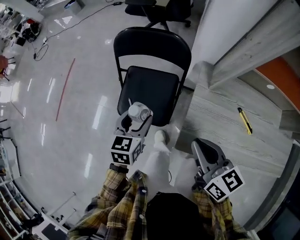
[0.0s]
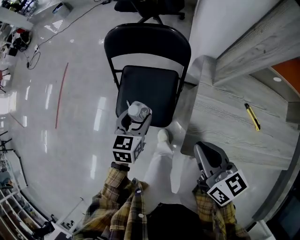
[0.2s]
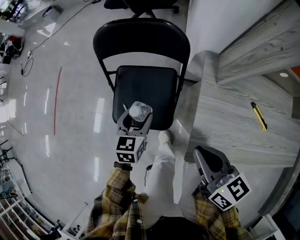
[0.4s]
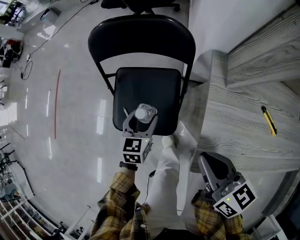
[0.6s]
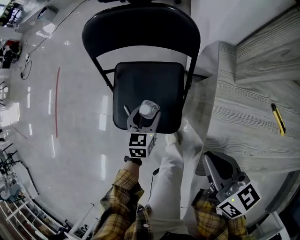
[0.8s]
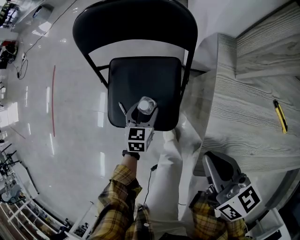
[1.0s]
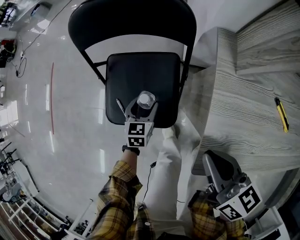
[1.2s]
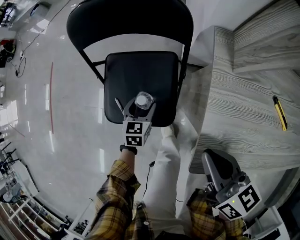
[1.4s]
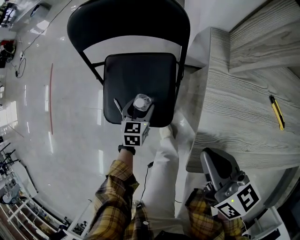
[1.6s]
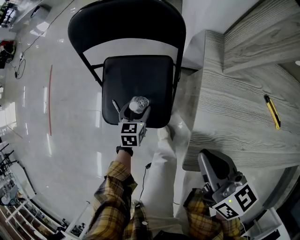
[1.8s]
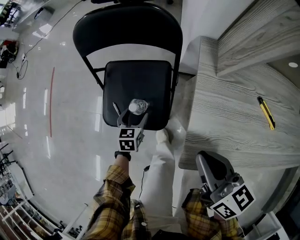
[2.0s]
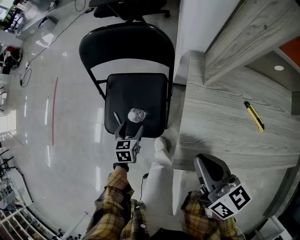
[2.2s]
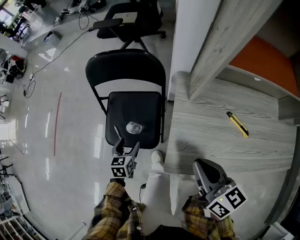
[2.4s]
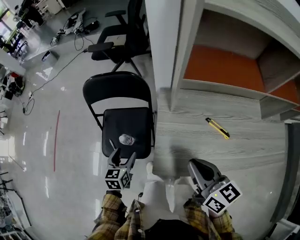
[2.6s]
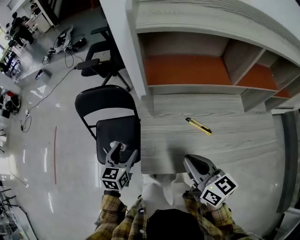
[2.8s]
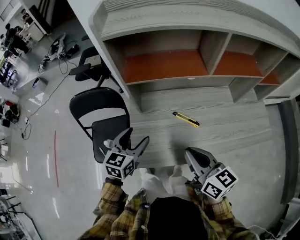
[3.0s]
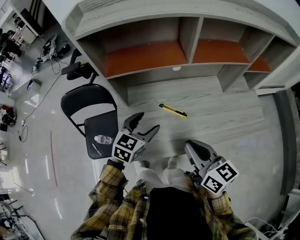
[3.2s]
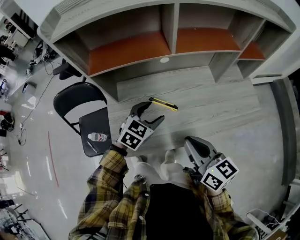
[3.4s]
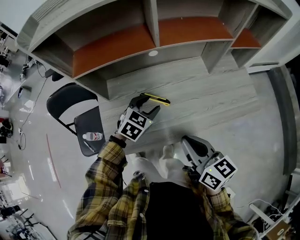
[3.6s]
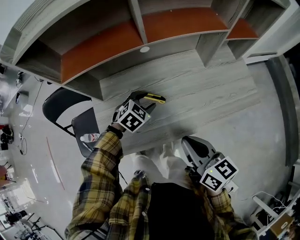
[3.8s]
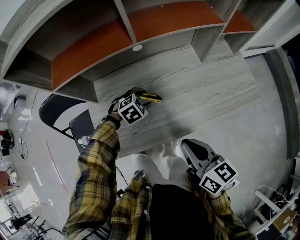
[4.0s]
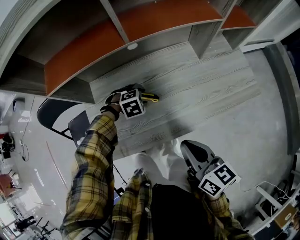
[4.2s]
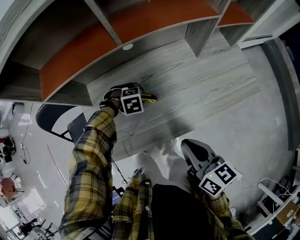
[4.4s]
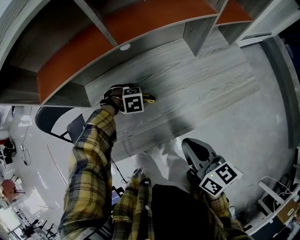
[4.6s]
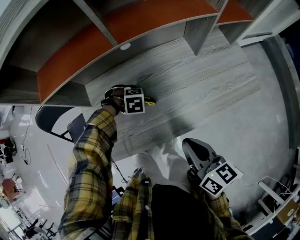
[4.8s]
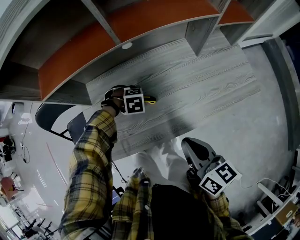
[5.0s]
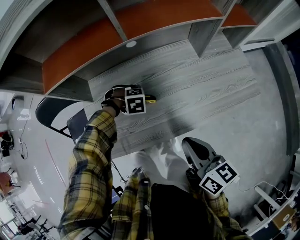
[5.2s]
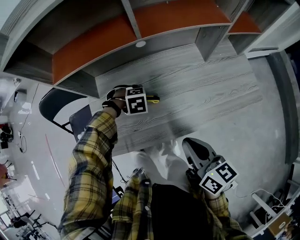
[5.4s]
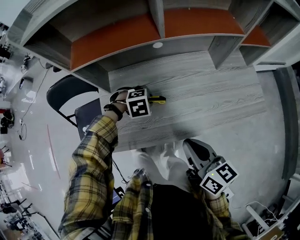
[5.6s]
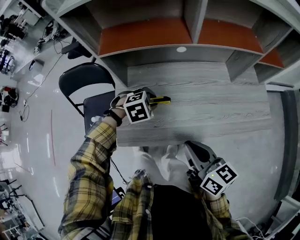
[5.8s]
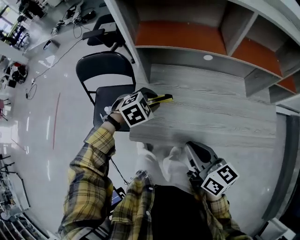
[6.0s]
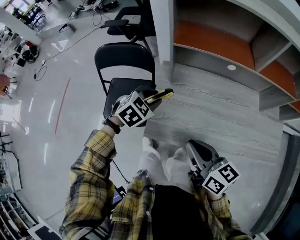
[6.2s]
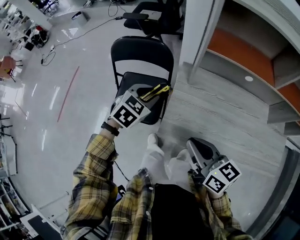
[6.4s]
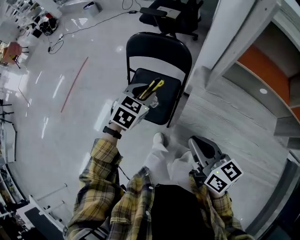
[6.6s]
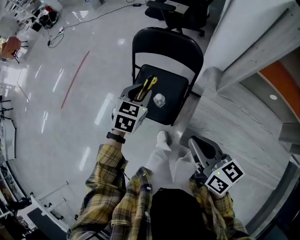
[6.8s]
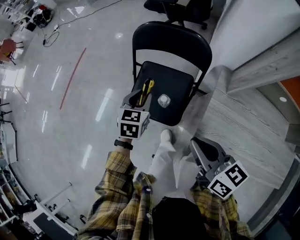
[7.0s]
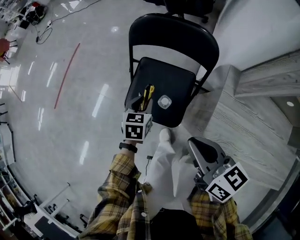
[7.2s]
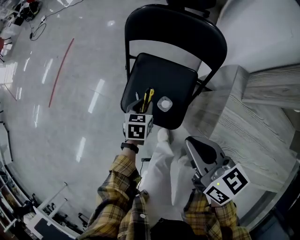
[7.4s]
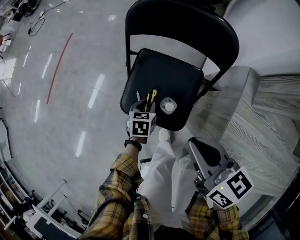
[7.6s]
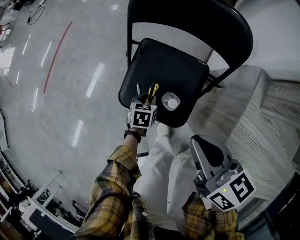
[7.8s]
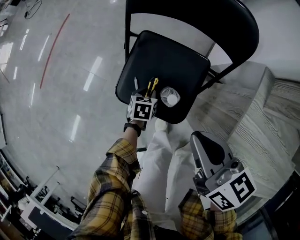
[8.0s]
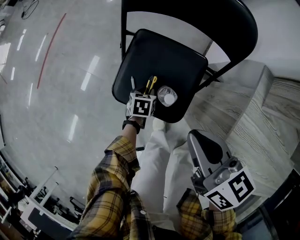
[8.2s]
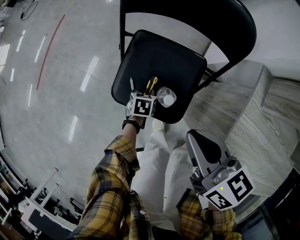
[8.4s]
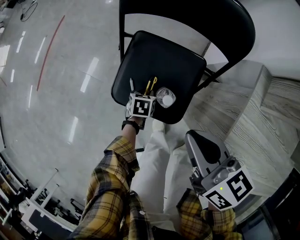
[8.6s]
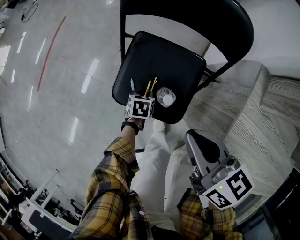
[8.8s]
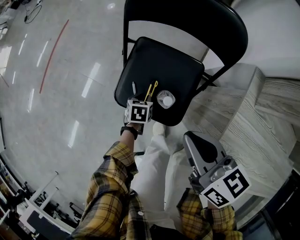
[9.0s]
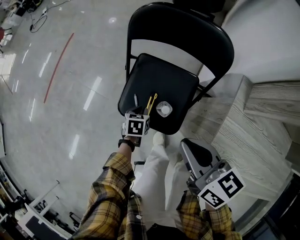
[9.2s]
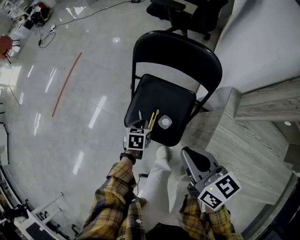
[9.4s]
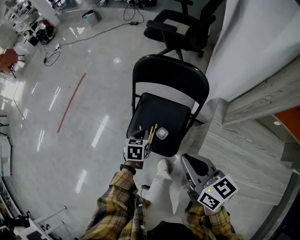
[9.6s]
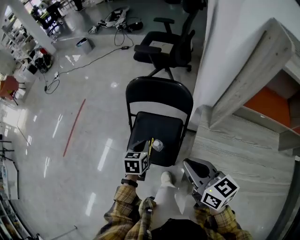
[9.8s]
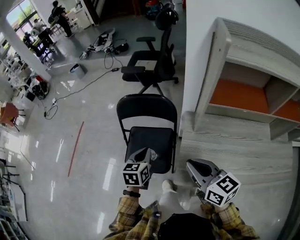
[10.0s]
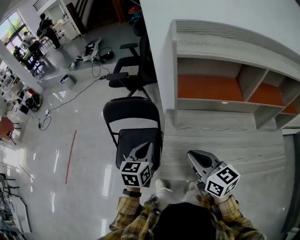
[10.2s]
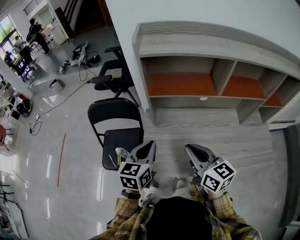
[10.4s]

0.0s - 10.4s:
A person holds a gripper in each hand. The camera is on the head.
0.0s - 1.4s: The right gripper is displaced downward by roughly 15 cm, while the left gripper travels downward by some 30 cm.
1.4s - 3.0s: The left gripper heads upward and to the right, covering roughly 50 cm, and rotates roughly 30 degrees. The right gripper goes some 35 cm to the right, upward and backward, and rotates roughly 20 degrees.
3.0s - 4.4s: The left gripper ends up roughly 35 cm from where it was, and tilts its fingers some 60 degrees downward. The right gripper moves about 20 cm, and swivels approximately 20 degrees.
4.4s - 6.0s: The left gripper moves about 25 cm, and turns by about 50 degrees, while the right gripper shifts by roughly 15 cm, and changes its angle by about 30 degrees.
6.0s - 7.4s: Both grippers are carried approximately 40 cm. The left gripper rolls counterclockwise, seen from behind, by approximately 70 degrees. Meanwhile the right gripper turns by about 30 degrees.
7.4s - 9.0s: The right gripper heads downward, covering approximately 5 cm; the left gripper heads downward, covering approximately 15 cm.
9.0s - 10.4s: The right gripper ends up some 50 cm from where it was, and turns by roughly 40 degrees, while the left gripper heads upward, covering roughly 60 cm, and points its fingers approximately 50 degrees further upward.

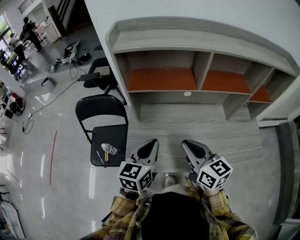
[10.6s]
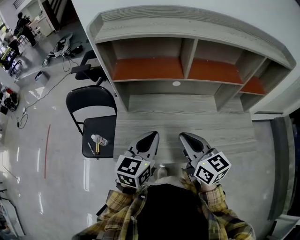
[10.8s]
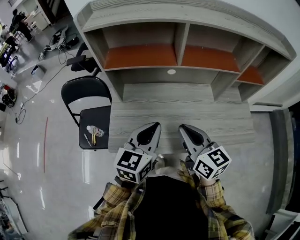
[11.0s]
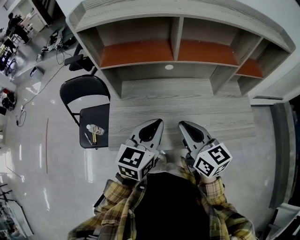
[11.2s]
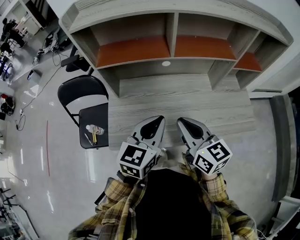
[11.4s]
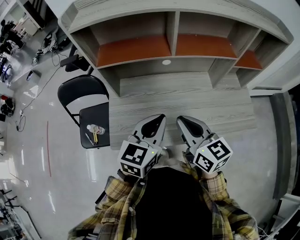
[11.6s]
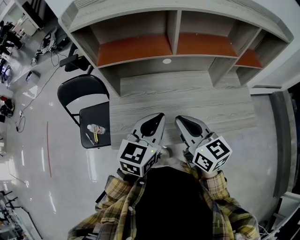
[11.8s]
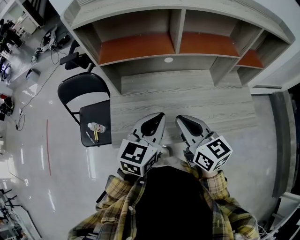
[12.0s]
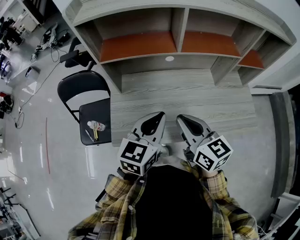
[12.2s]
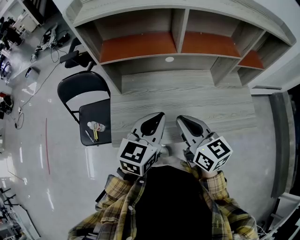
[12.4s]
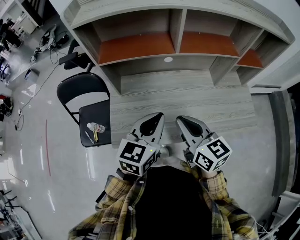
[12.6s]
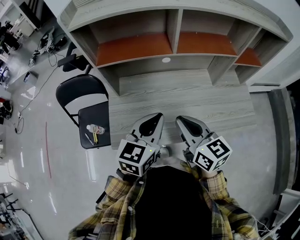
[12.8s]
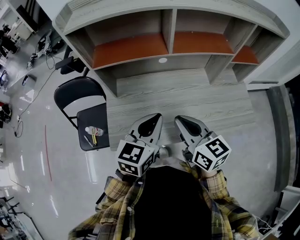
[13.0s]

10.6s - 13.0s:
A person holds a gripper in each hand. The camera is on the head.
10.6s - 11.8s: The right gripper goes about 5 cm to the right. The left gripper is displaced to the right by approximately 10 cm.
11.8s - 13.0s: Neither gripper changes place.

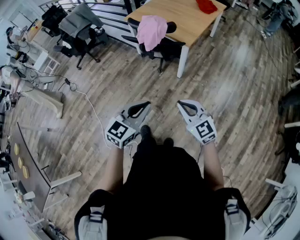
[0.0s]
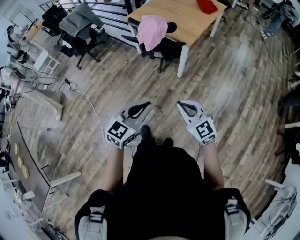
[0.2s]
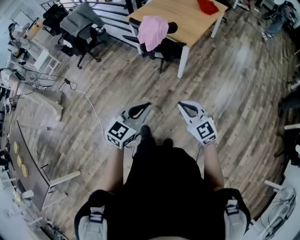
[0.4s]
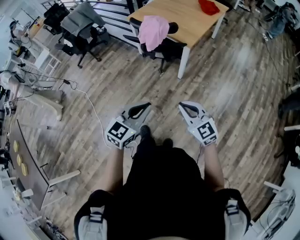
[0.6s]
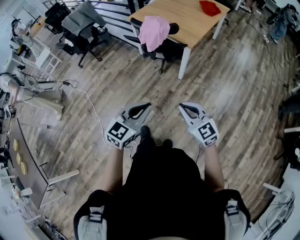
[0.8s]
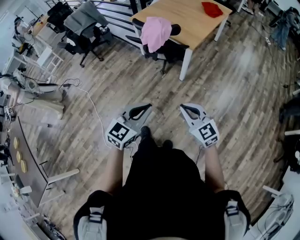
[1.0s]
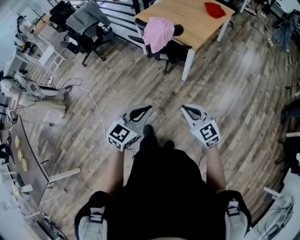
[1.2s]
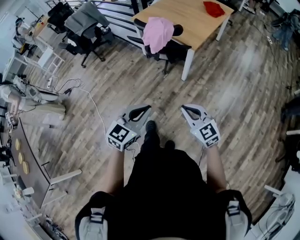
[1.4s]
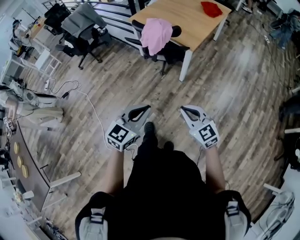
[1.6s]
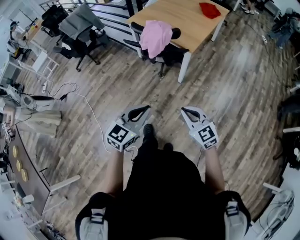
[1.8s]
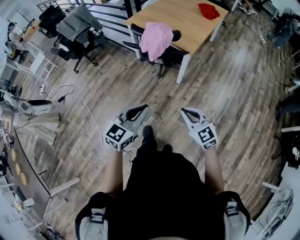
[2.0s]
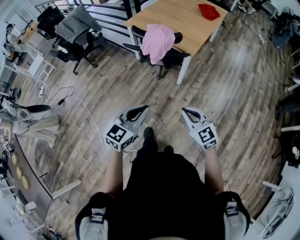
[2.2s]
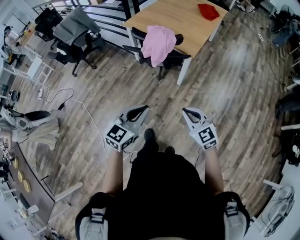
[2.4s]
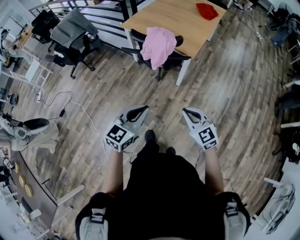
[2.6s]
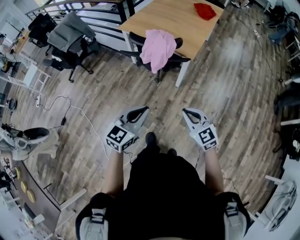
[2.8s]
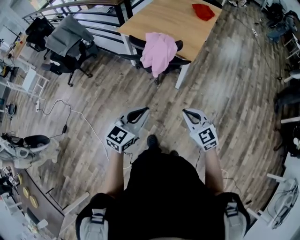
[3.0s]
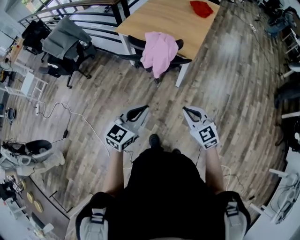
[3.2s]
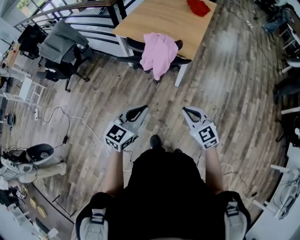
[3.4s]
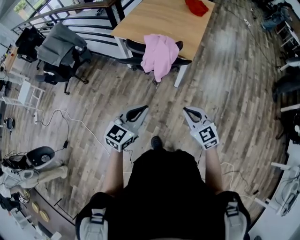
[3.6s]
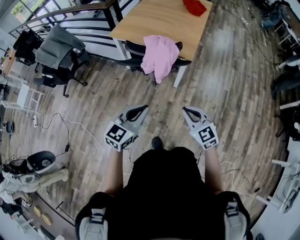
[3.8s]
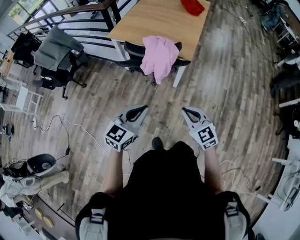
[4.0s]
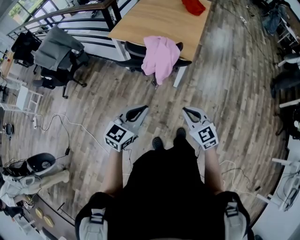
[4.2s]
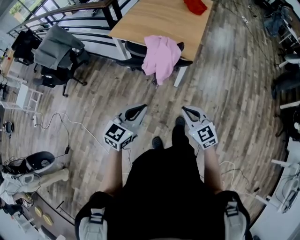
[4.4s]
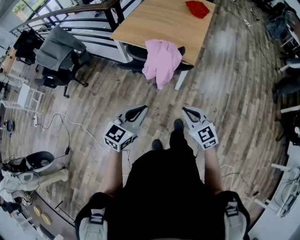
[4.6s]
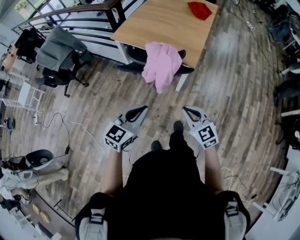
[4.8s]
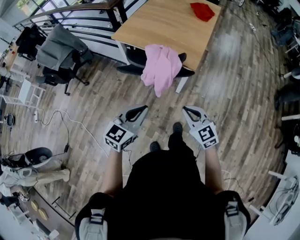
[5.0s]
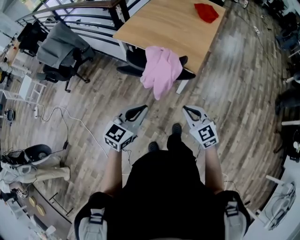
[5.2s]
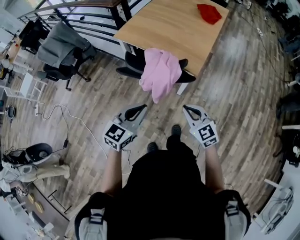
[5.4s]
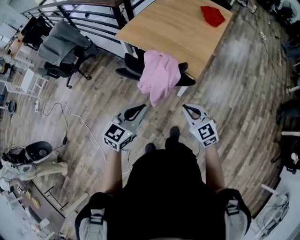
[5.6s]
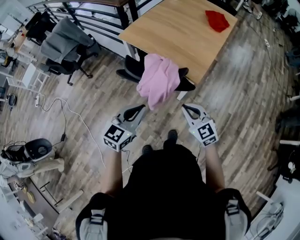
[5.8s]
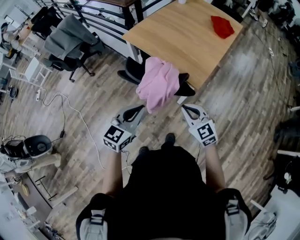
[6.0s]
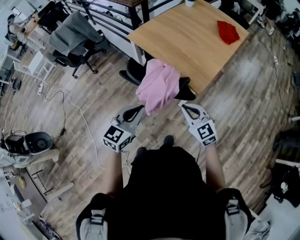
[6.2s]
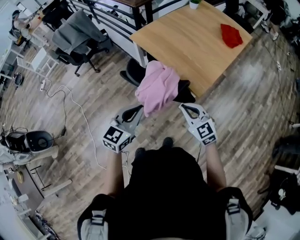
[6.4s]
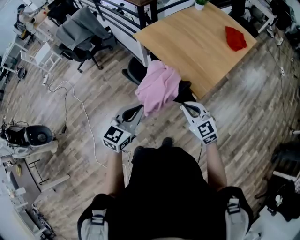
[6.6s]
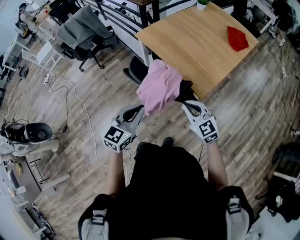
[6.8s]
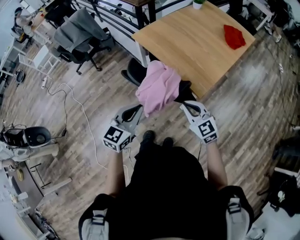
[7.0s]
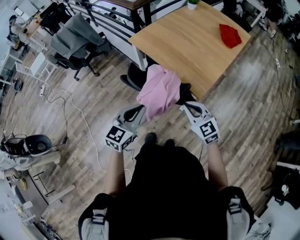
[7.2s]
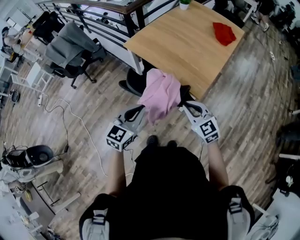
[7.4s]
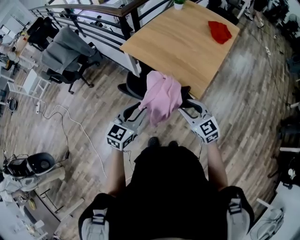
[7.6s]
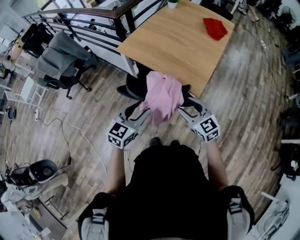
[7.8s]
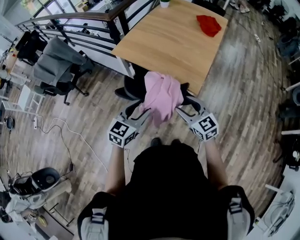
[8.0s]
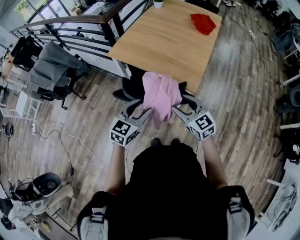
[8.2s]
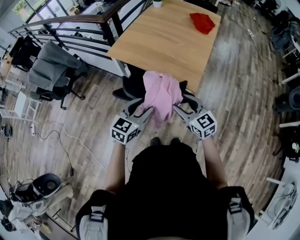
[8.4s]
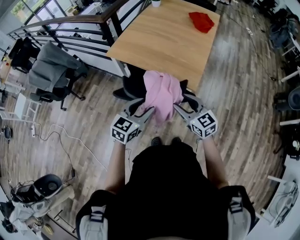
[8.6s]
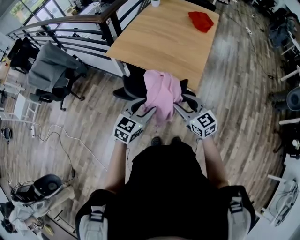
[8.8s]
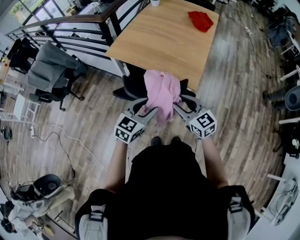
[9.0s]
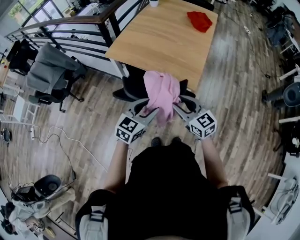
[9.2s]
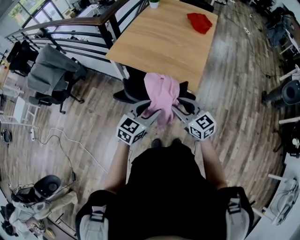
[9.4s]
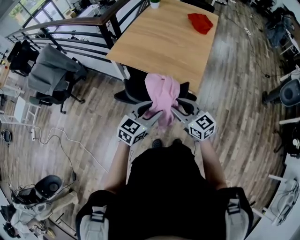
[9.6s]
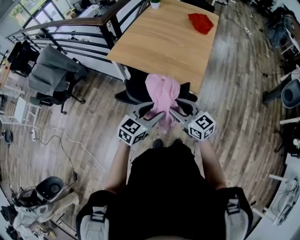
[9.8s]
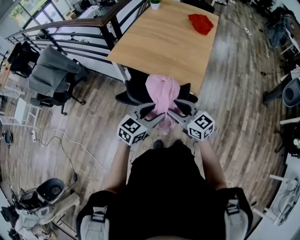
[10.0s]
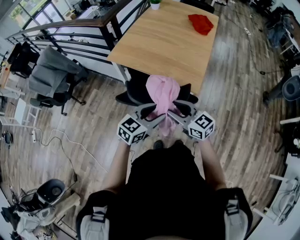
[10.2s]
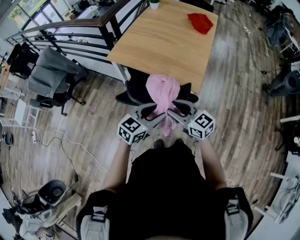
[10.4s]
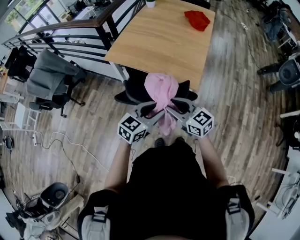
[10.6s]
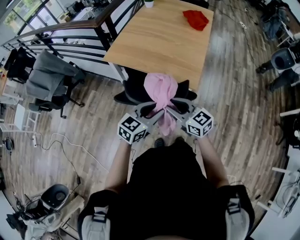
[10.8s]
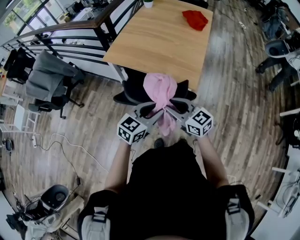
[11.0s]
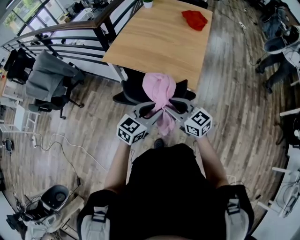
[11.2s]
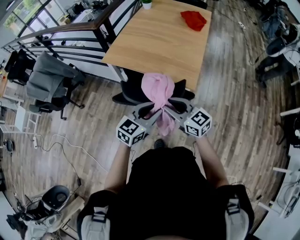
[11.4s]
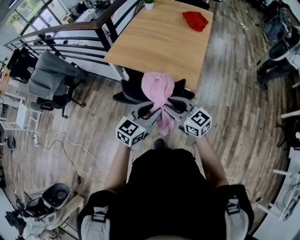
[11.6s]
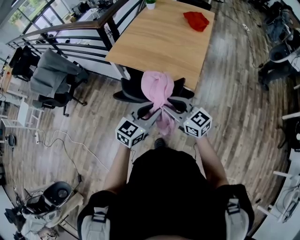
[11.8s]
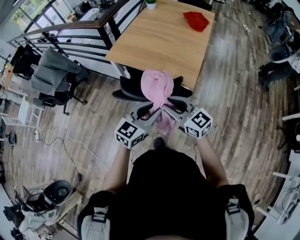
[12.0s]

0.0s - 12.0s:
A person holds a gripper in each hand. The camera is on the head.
0.0s - 1.6s: There are only small adjustments of the grippers.
1.6s - 3.0s: The two grippers go roughly 15 cm forward and to the left.
3.0s - 4.4s: Both grippers move forward and to the left, about 10 cm.
4.4s - 6.0s: The right gripper goes some 20 cm forward. The left gripper shifts some 15 cm forward and to the right.
6.0s - 7.6s: Both grippers move forward, some 10 cm. The right gripper opens its fingers. The left gripper opens.
7.6s - 9.0s: The grippers stay close to where they were, moving slightly.
9.0s - 10.4s: The right gripper moves to the left, approximately 5 cm.
10.4s - 12.0s: Both grippers travel together upward, some 5 cm.
